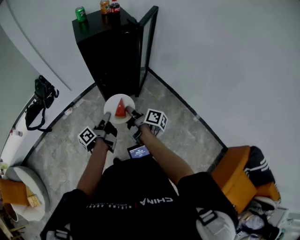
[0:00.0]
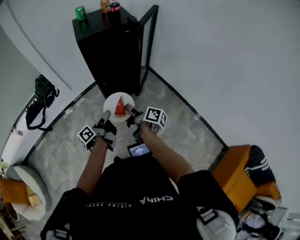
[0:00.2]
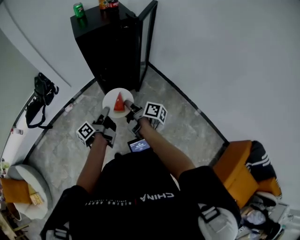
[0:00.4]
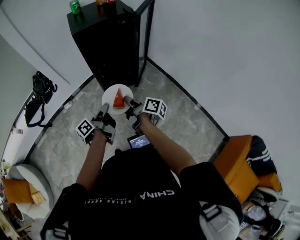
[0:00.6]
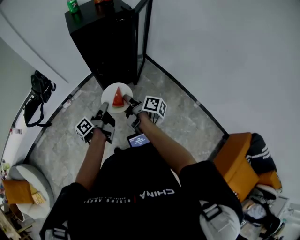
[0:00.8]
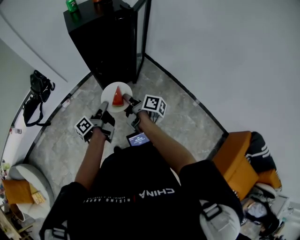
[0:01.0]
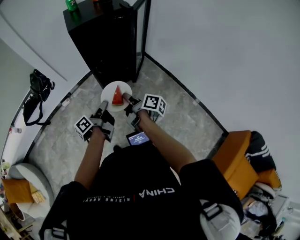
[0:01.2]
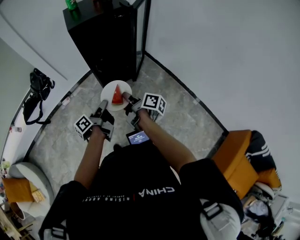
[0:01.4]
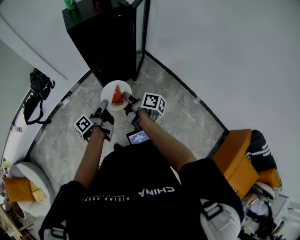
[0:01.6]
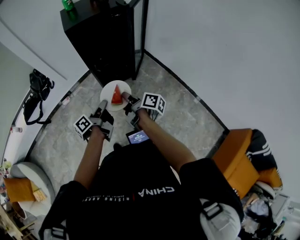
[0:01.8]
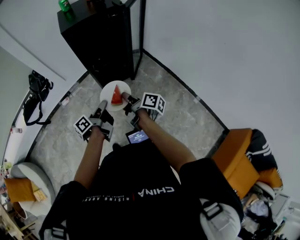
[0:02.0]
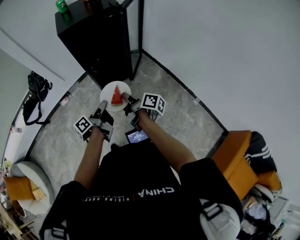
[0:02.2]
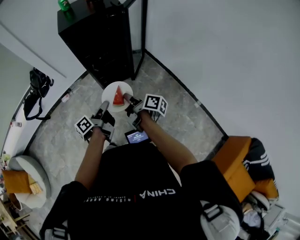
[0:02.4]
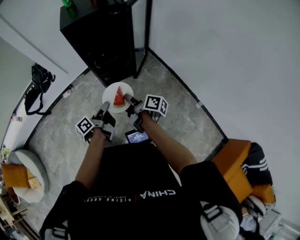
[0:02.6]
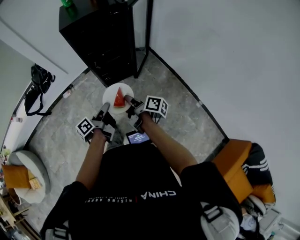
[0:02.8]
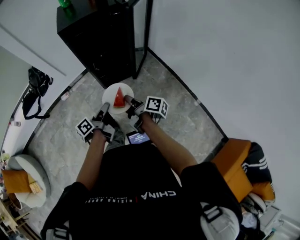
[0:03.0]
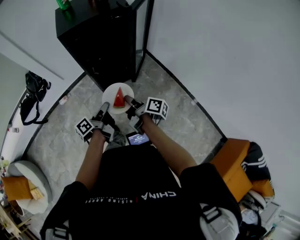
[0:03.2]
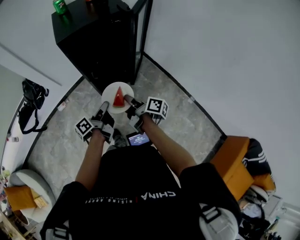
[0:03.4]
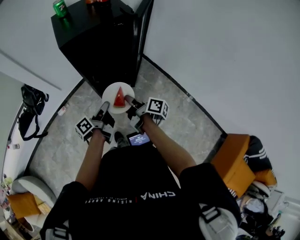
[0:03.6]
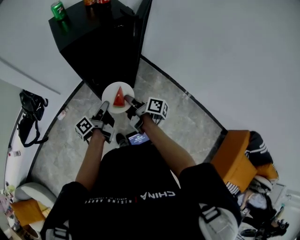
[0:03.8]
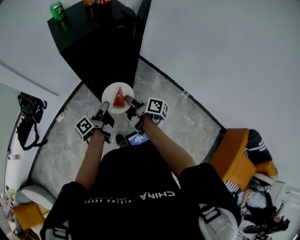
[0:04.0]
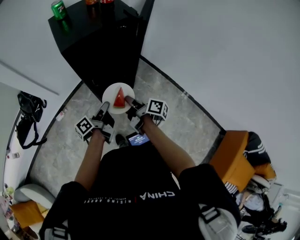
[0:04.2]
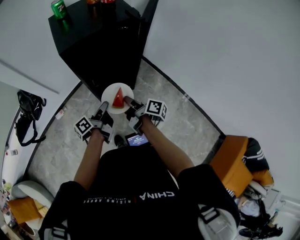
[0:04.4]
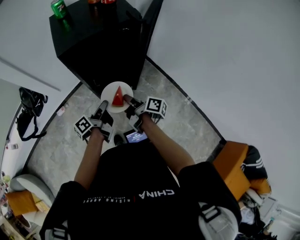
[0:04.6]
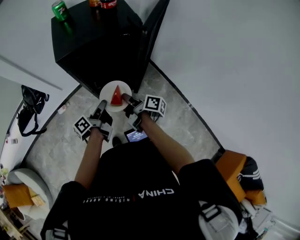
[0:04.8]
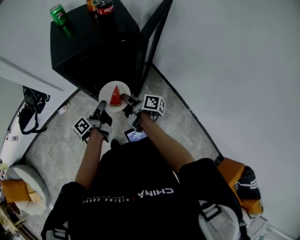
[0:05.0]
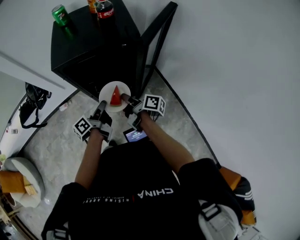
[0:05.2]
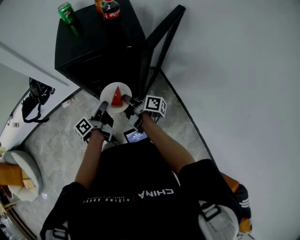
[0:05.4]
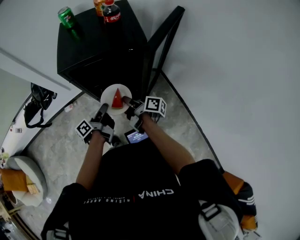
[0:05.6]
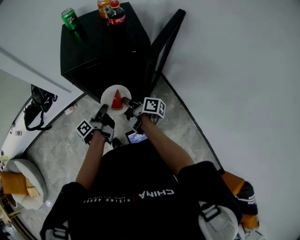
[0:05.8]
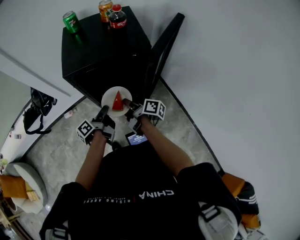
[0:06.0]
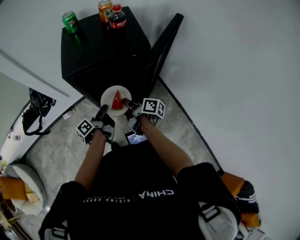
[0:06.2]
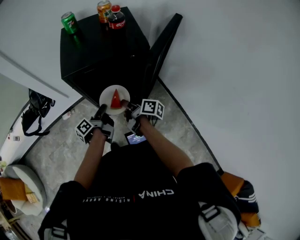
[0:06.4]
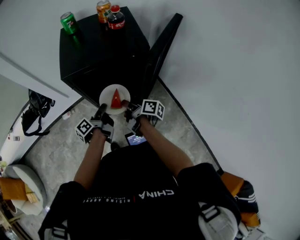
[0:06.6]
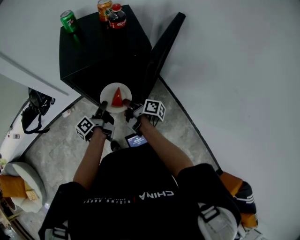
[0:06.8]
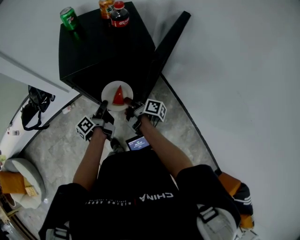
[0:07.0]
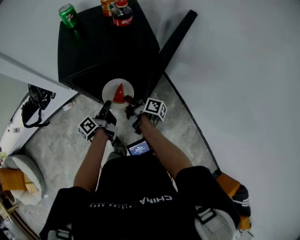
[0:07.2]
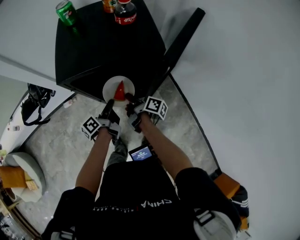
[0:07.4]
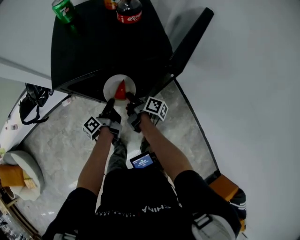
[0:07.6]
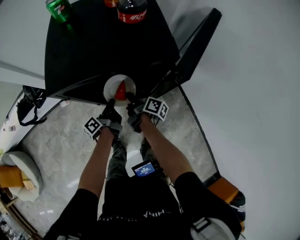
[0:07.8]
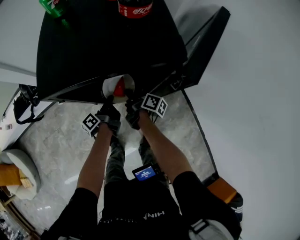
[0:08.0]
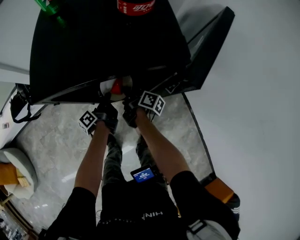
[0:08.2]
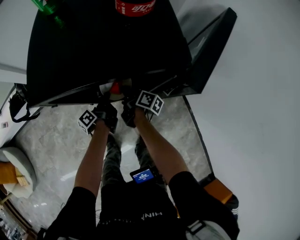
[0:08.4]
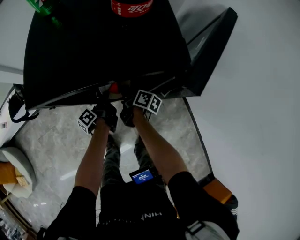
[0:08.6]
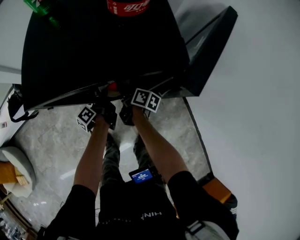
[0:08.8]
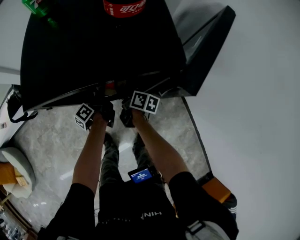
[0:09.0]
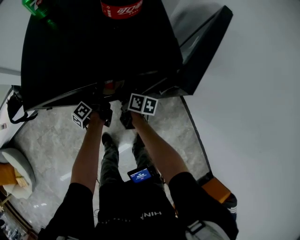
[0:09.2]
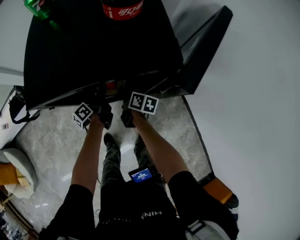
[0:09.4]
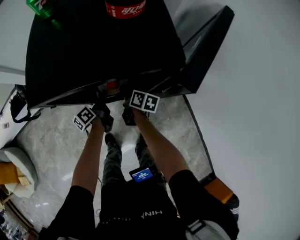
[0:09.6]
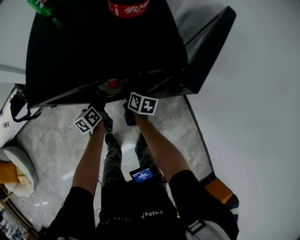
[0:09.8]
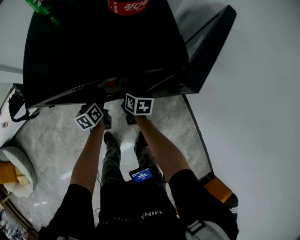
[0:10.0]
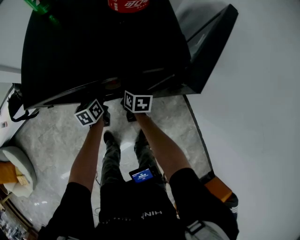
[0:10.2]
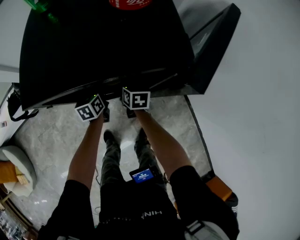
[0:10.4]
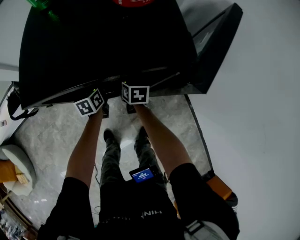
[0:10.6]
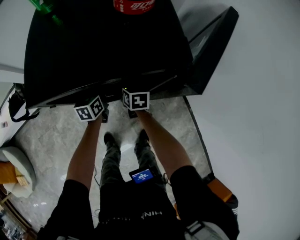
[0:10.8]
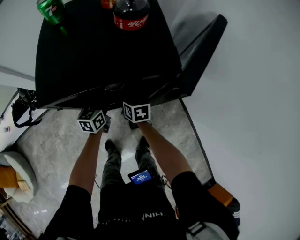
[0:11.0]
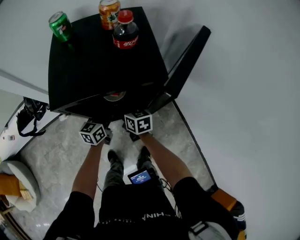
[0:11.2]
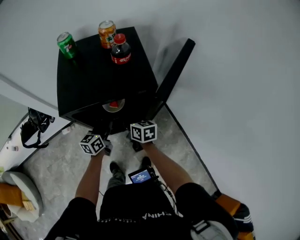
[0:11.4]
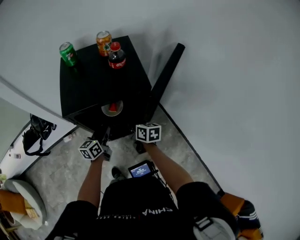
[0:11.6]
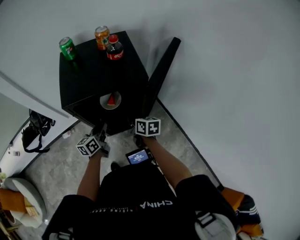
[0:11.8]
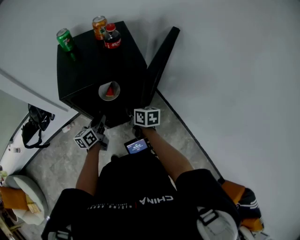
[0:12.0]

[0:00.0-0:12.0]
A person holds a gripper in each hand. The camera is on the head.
0:00.0 to 0:01.6: The grippers move only a little.
0:01.6 to 0:03.0: Both grippers move to the right, some 5 cm.
0:03.0 to 0:04.4: The grippers both shift forward and to the left by approximately 20 cm.
0:04.4 to 0:06.0: Both grippers move forward, about 10 cm. The left gripper turns by roughly 20 degrees.
0:06.0 to 0:07.6: Both grippers travel together forward and downward, roughly 10 cm.
0:07.6 to 0:09.0: The grippers both shift downward and forward by approximately 15 cm. The right gripper turns by some 20 degrees.
0:09.0 to 0:10.4: The right gripper changes its angle by approximately 40 degrees. The left gripper twists roughly 60 degrees clockwise, seen from behind, and opens, then closes once more.
0:10.4 to 0:12.0: Both grippers travel together upward and backward, about 20 cm. The left gripper swivels roughly 30 degrees.

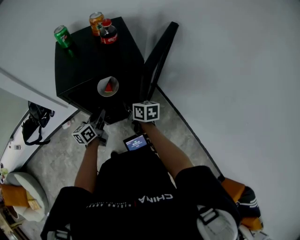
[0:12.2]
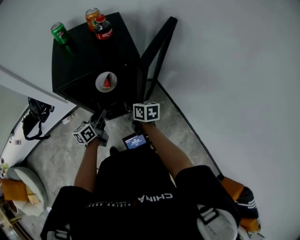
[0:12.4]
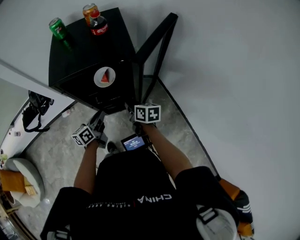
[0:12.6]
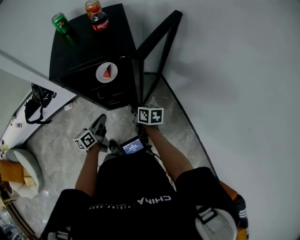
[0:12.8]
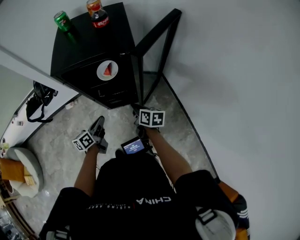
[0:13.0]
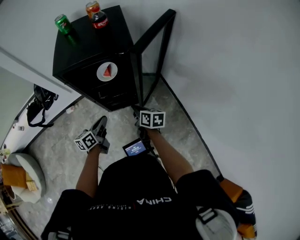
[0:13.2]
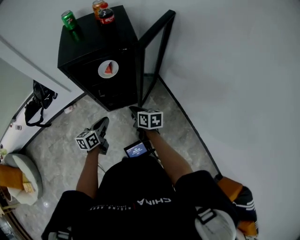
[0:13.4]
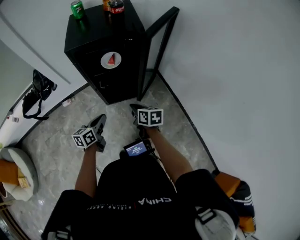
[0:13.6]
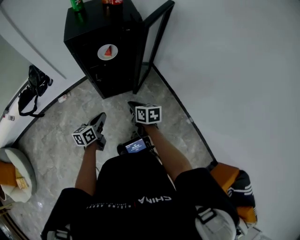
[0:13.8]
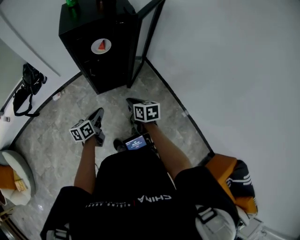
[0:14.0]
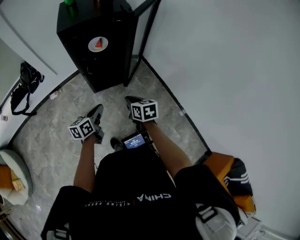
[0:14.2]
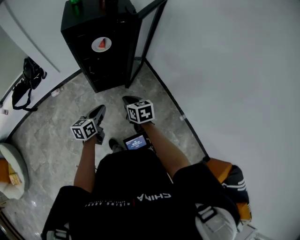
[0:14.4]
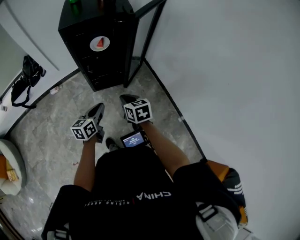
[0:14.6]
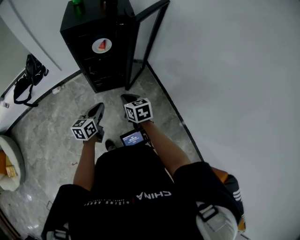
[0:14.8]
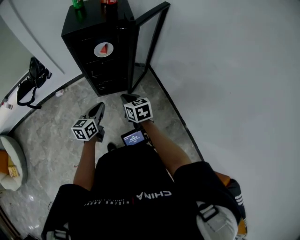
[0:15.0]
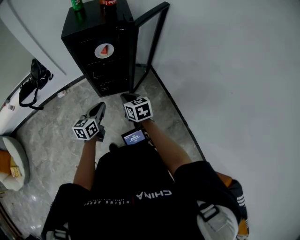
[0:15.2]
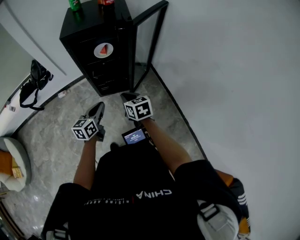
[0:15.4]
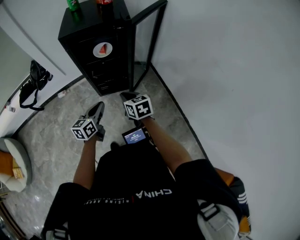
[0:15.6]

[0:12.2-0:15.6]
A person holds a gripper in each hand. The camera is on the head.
0:12.2 to 0:13.8: Both grippers move backward, roughly 30 cm.
0:13.8 to 0:15.6: The left gripper travels to the right by roughly 10 cm. The right gripper ends up about 5 cm from where it was, and swivels approximately 20 degrees.

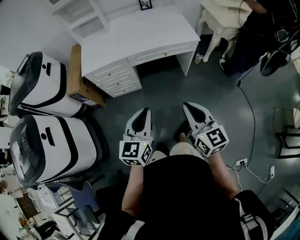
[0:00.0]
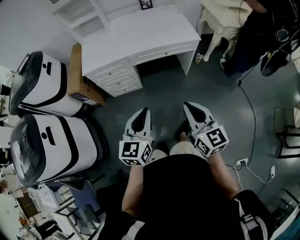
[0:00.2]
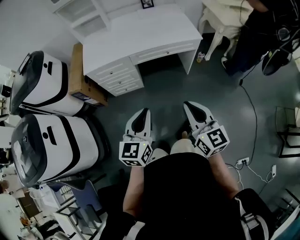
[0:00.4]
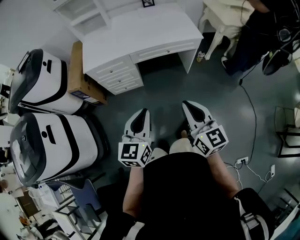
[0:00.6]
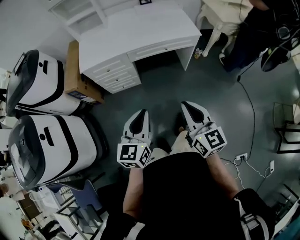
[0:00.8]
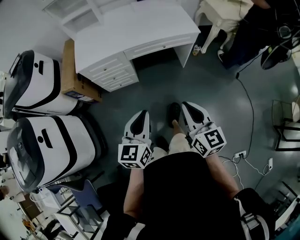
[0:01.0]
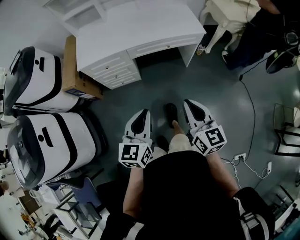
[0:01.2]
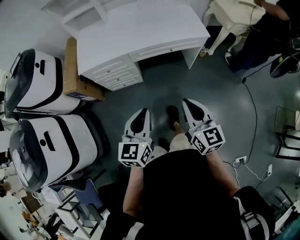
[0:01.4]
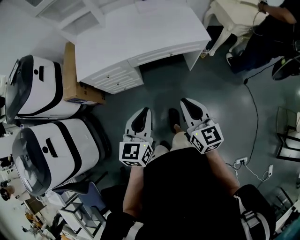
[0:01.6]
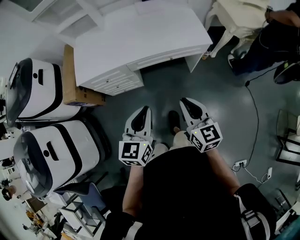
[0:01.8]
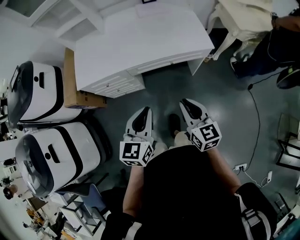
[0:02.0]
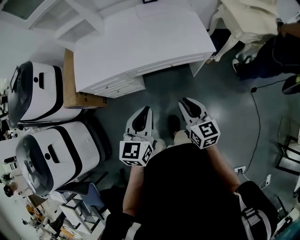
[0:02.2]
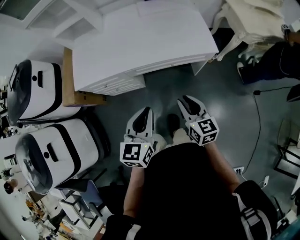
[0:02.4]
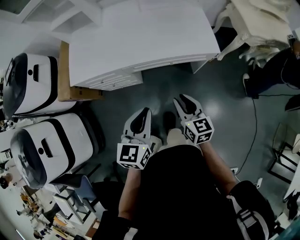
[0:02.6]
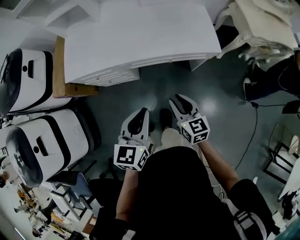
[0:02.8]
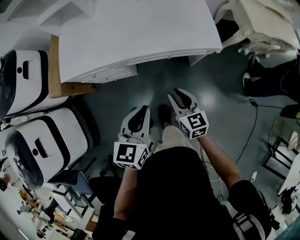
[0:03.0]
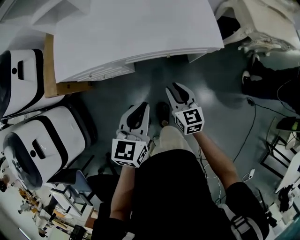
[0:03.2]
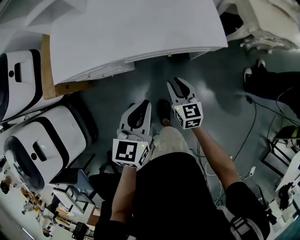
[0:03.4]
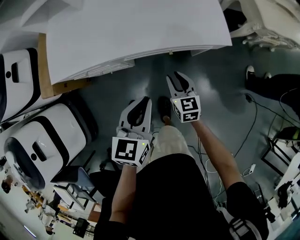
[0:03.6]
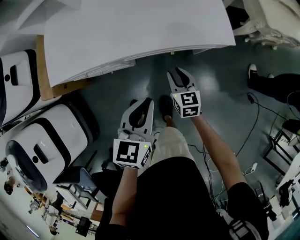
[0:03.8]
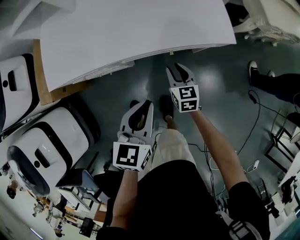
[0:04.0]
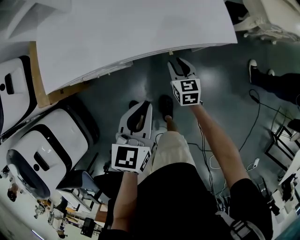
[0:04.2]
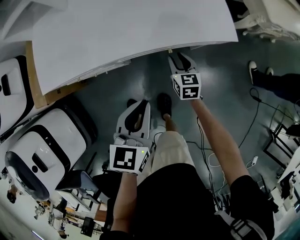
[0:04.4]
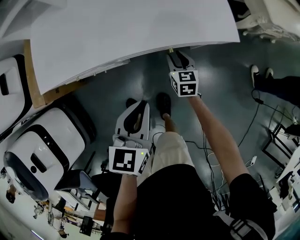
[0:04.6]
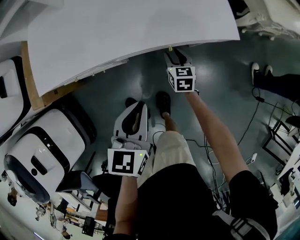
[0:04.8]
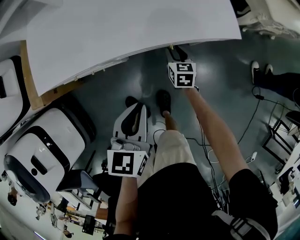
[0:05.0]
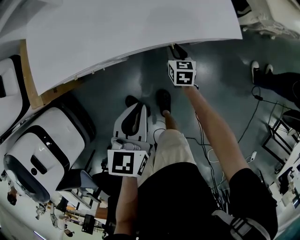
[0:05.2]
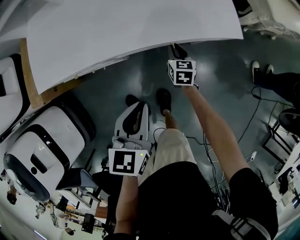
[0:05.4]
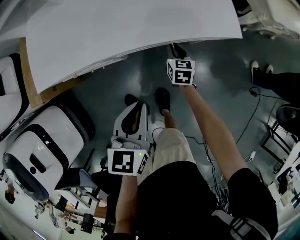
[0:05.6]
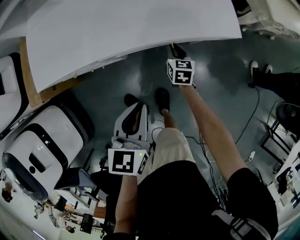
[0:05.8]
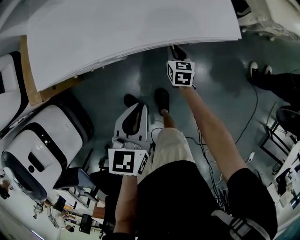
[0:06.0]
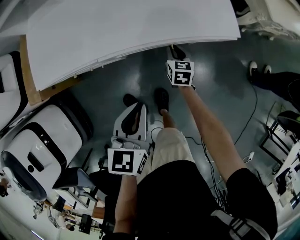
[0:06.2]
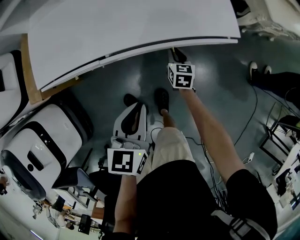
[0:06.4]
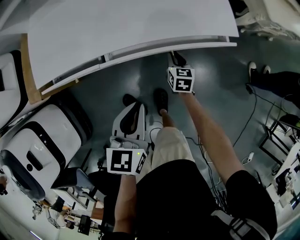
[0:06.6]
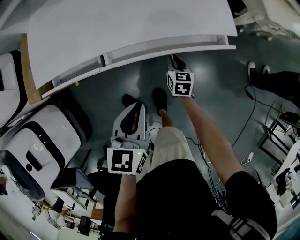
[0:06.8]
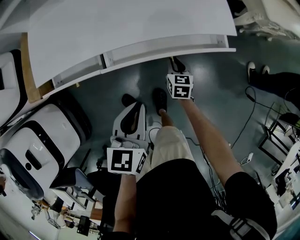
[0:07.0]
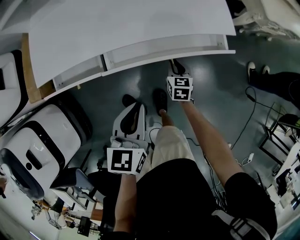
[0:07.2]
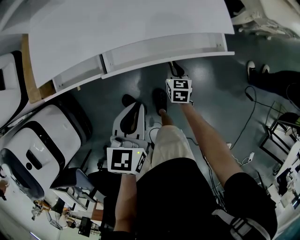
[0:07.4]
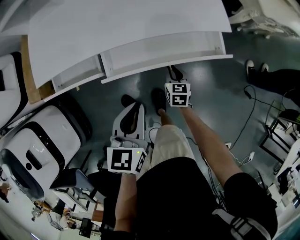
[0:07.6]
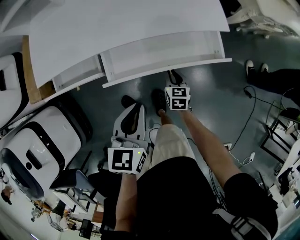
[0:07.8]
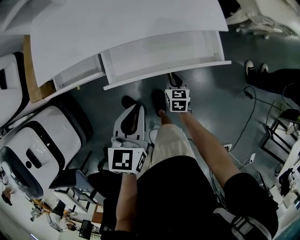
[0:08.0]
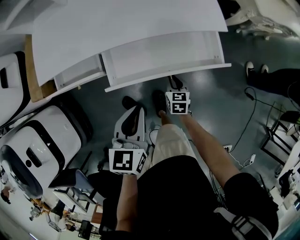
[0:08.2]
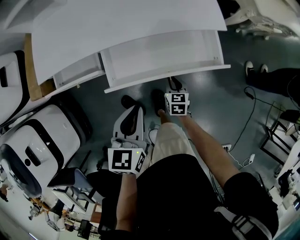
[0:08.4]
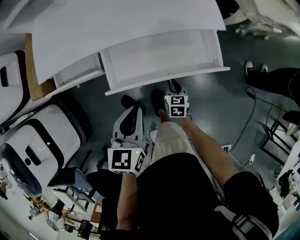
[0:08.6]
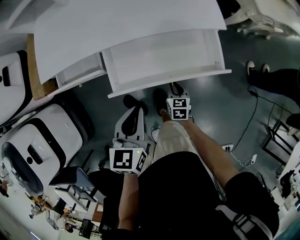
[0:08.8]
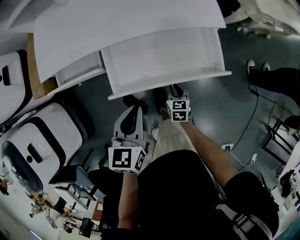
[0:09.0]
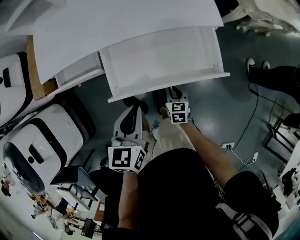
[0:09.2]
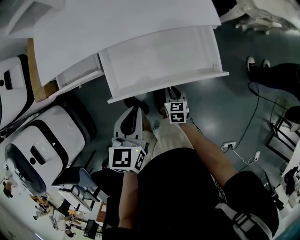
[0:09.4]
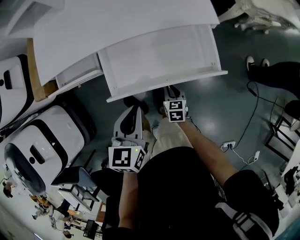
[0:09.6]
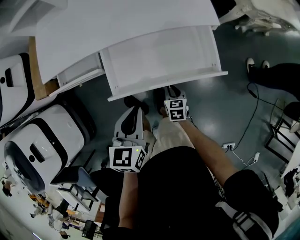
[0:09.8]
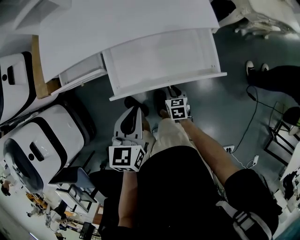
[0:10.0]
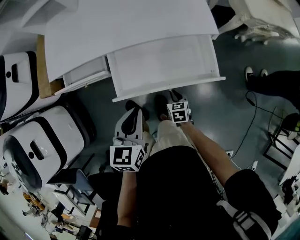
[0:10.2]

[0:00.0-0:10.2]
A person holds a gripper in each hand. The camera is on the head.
0:00.0 to 0:01.4: Both grippers move forward, about 10 cm.
0:01.4 to 0:03.0: The right gripper is displaced forward and downward by some 30 cm, and opens. Meanwhile the left gripper is displaced forward and to the right by some 25 cm.
0:03.0 to 0:04.4: The right gripper is displaced downward and forward by some 25 cm. The left gripper travels downward and forward by about 15 cm.
0:04.4 to 0:05.8: The right gripper goes approximately 5 cm downward.
0:05.8 to 0:07.2: The right gripper moves backward, roughly 10 cm.
0:07.2 to 0:08.8: The right gripper shifts some 15 cm backward, while the left gripper travels backward by roughly 5 cm.
0:08.8 to 0:10.2: There are only small adjustments of the grippers.
